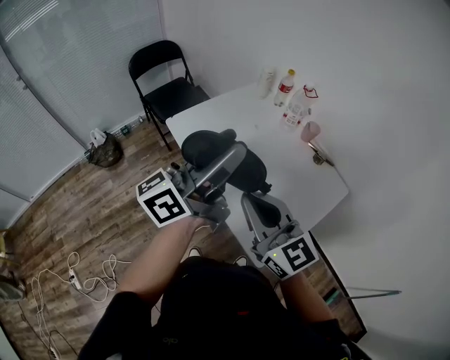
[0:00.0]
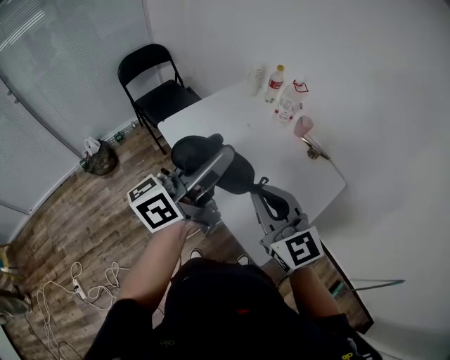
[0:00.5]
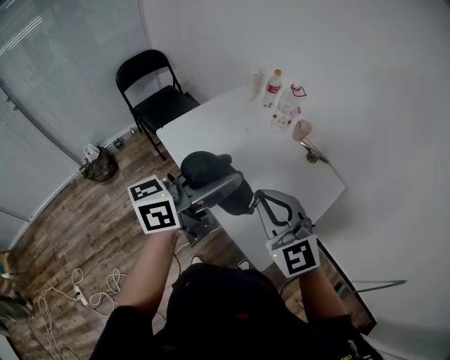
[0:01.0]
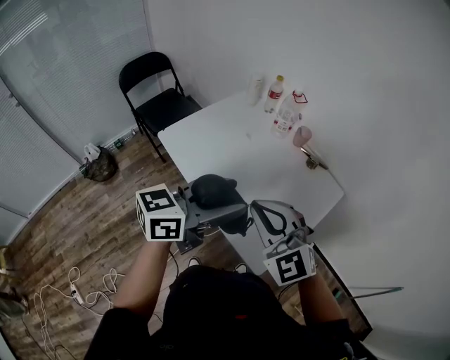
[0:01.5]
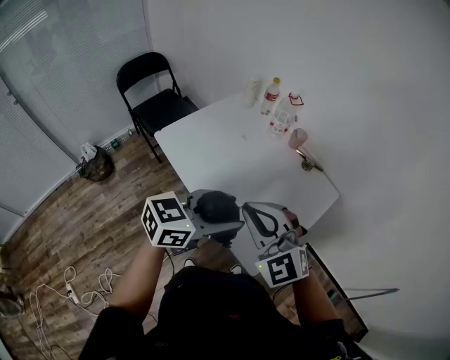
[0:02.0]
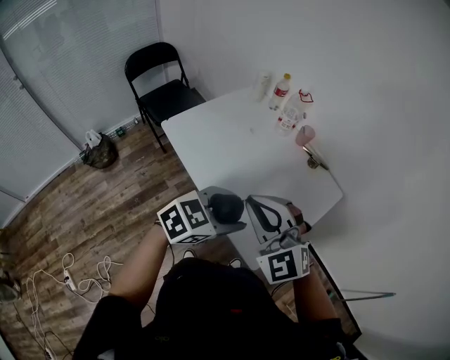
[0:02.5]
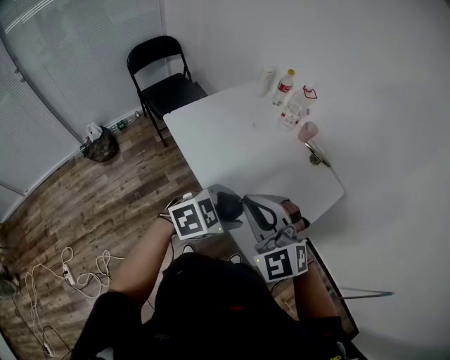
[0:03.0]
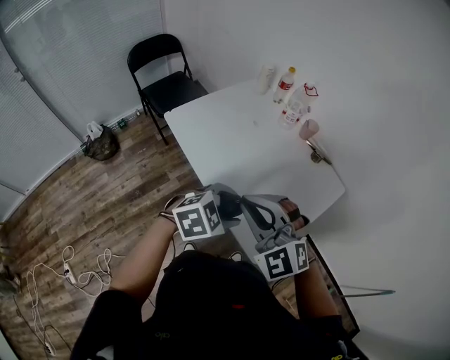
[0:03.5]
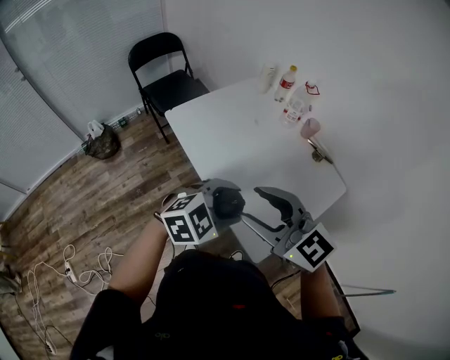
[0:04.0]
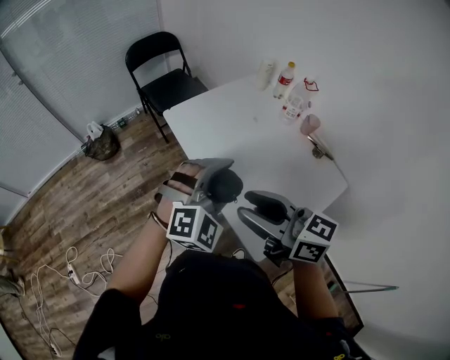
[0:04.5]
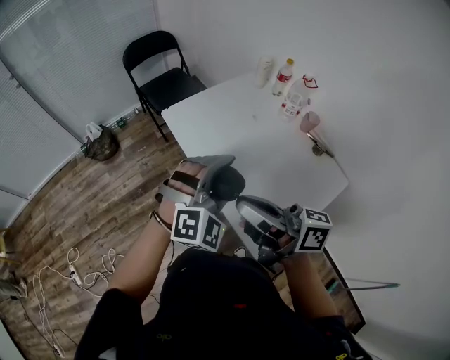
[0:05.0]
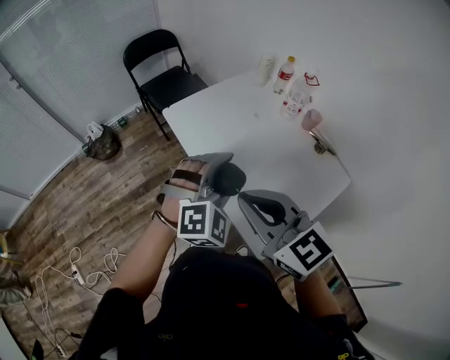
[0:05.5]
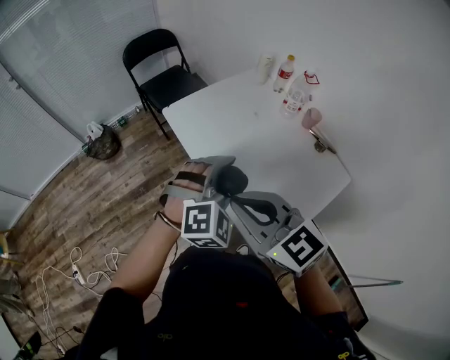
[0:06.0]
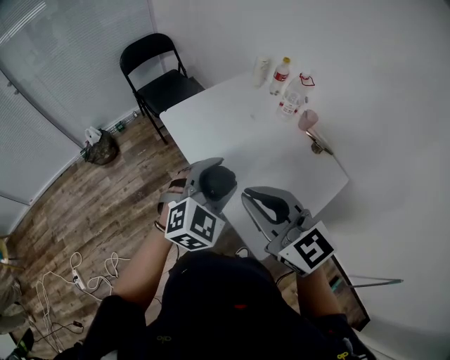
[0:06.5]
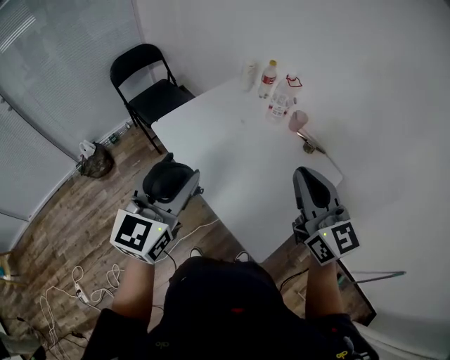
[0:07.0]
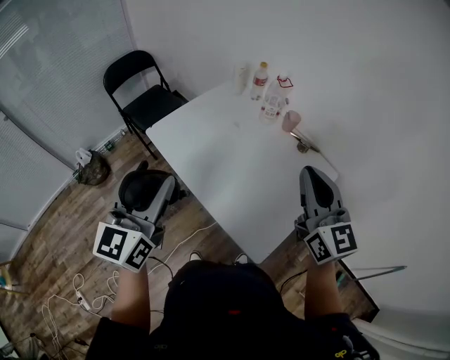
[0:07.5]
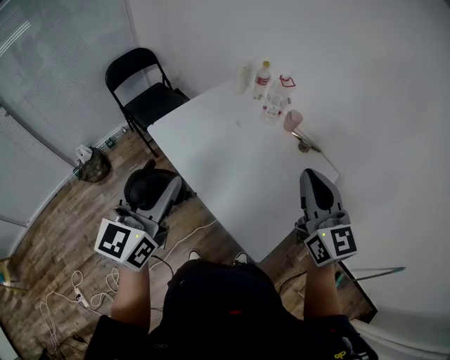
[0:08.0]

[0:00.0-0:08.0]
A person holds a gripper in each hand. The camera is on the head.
0:00.0 to 0:02.0: The left gripper shifts some 15 cm downward, to the right and backward, and tilts its fingers roughly 40 degrees downward, while the right gripper rotates roughly 40 degrees.
0:02.0 to 0:04.0: The right gripper changes its angle by approximately 40 degrees, and opens its fingers. The left gripper travels downward by roughly 10 cm, and rotates roughly 40 degrees.
0:04.0 to 0:06.0: The right gripper closes up, while the left gripper travels forward by some 5 cm, and swivels approximately 40 degrees.
0:06.0 to 0:08.0: The right gripper heads to the right, covering about 20 cm, and rotates about 40 degrees. Meanwhile the left gripper travels upward and to the left by approximately 20 cm, and rotates around the line of its fingers by roughly 60 degrees, counterclockwise from behind.

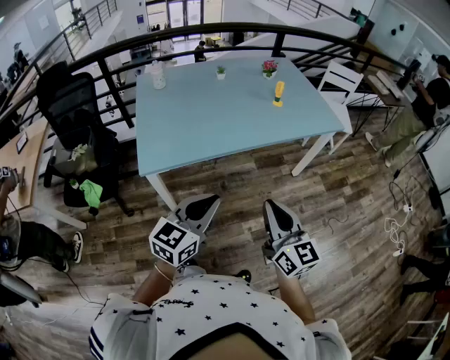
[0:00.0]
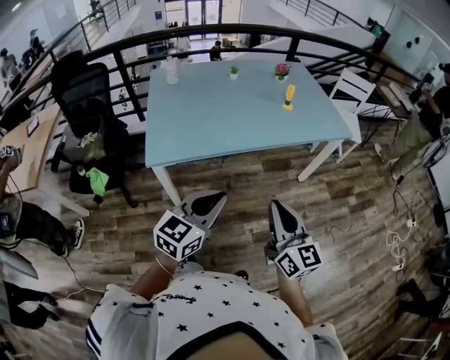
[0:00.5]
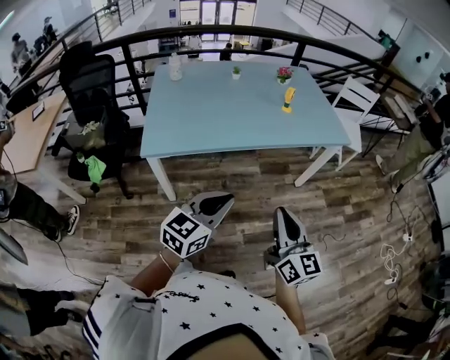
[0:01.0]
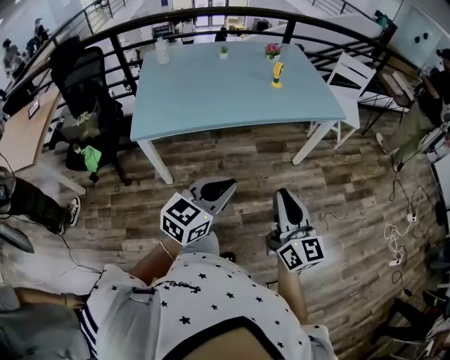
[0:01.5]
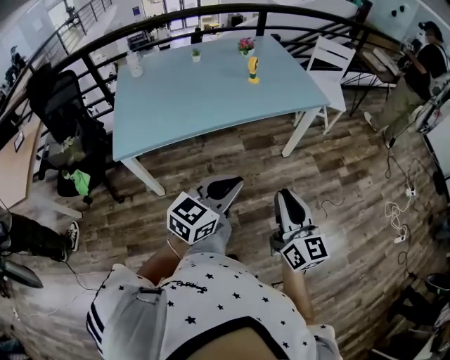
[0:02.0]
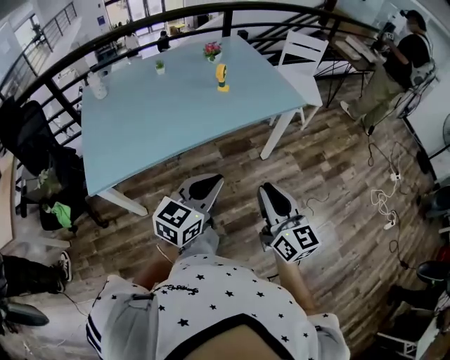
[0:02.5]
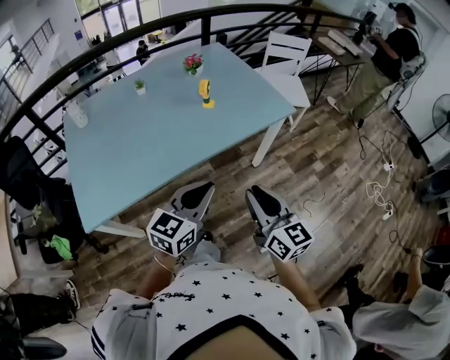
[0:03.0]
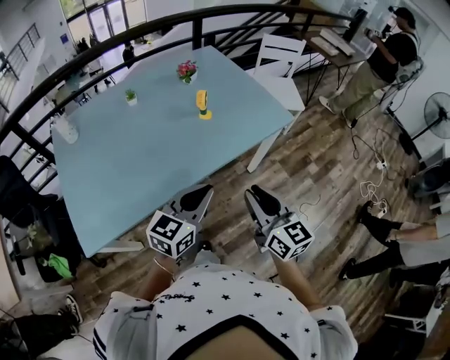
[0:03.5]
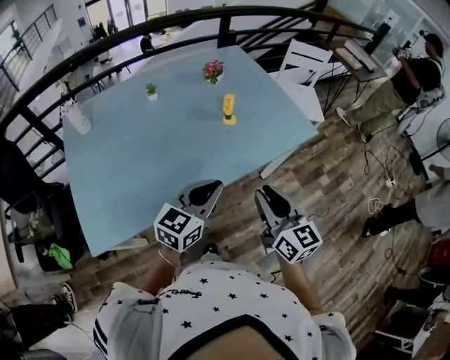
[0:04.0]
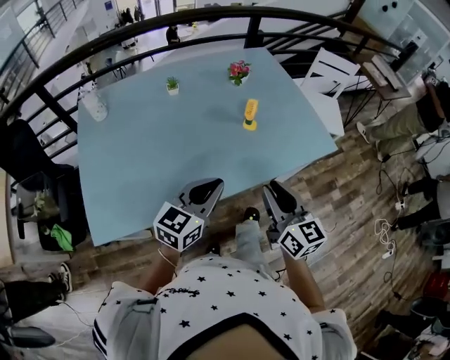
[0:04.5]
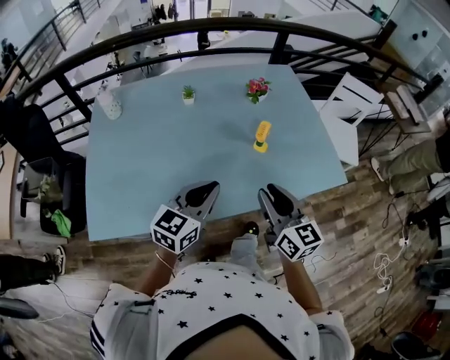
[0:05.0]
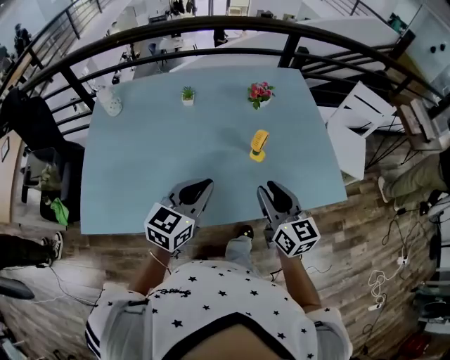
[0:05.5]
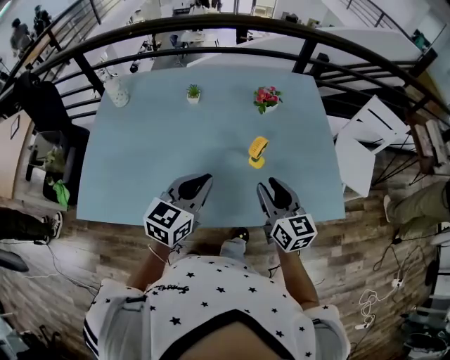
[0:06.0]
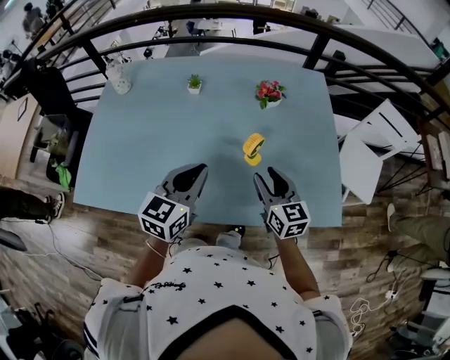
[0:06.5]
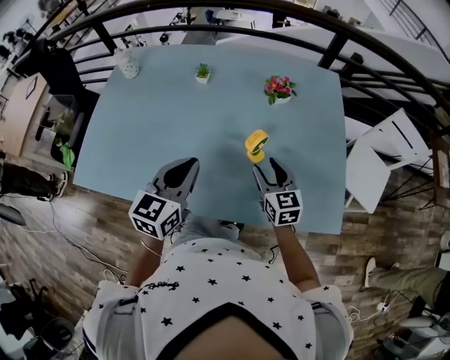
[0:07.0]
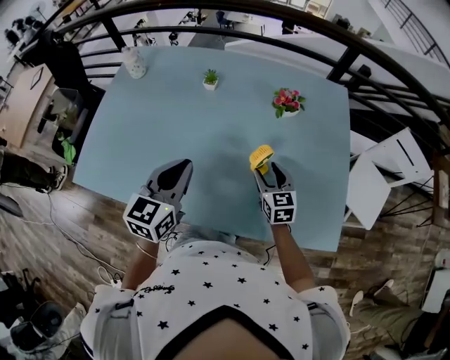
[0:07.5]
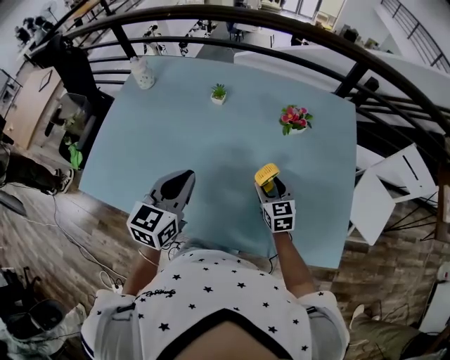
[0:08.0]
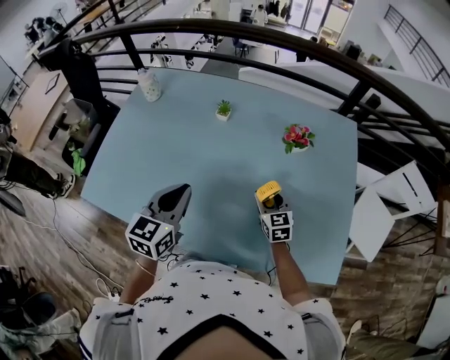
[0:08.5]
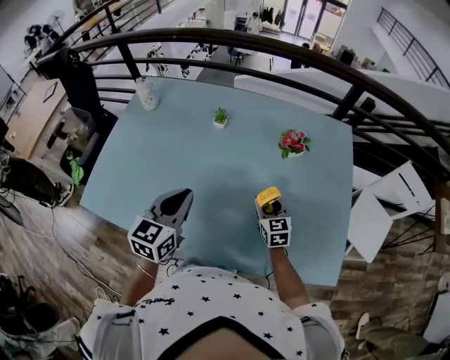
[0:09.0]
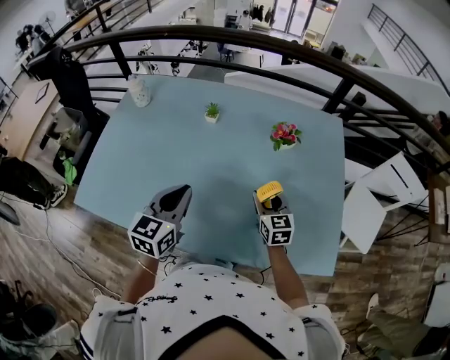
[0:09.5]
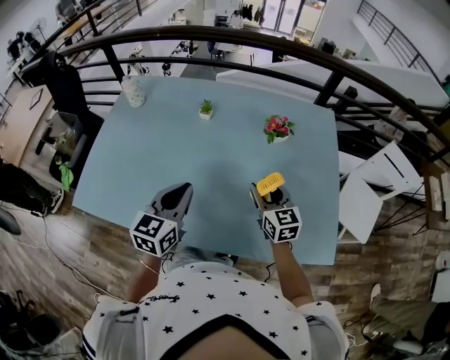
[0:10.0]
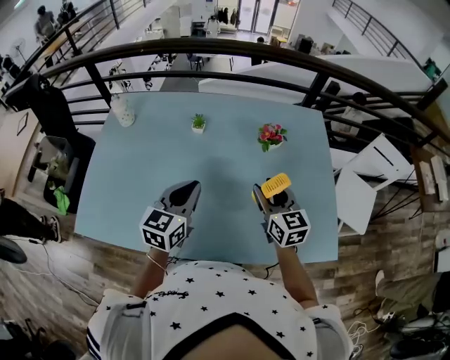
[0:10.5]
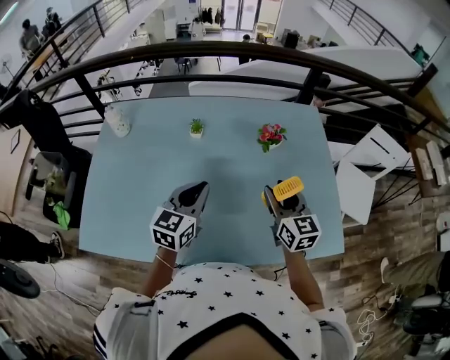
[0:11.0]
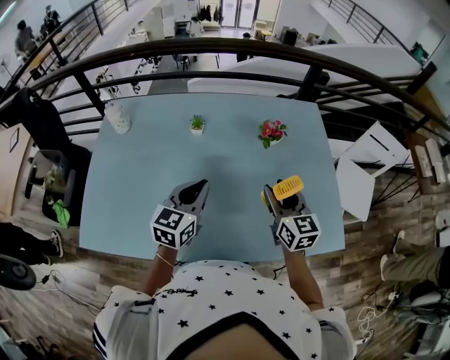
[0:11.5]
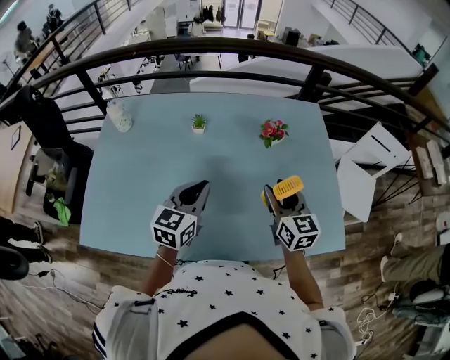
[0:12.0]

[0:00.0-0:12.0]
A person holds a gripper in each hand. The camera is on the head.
0:00.0 to 0:02.0: Both grippers travel together to the right, some 20 cm.
0:02.0 to 0:04.0: Both grippers travel together forward, roughly 30 cm.
0:04.0 to 0:06.0: The left gripper moves approximately 15 cm, and changes its angle by approximately 30 degrees. Meanwhile the right gripper shifts by about 25 cm, and turns by roughly 30 degrees.
0:06.0 to 0:08.0: The left gripper heads forward, covering about 5 cm, and turns by about 20 degrees. The right gripper is displaced downward and forward by some 20 cm, swivels about 20 degrees, and opens.
0:08.0 to 0:10.0: The right gripper is displaced upward by some 10 cm.
0:10.0 to 0:12.0: The right gripper moves upward, about 5 cm; the left gripper is displaced forward by approximately 5 cm.

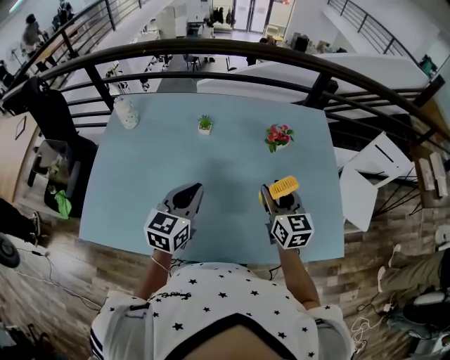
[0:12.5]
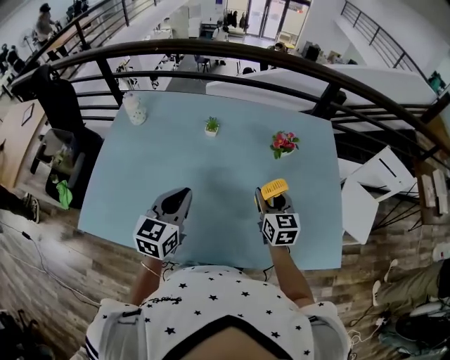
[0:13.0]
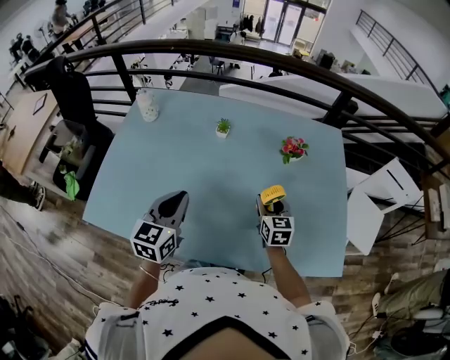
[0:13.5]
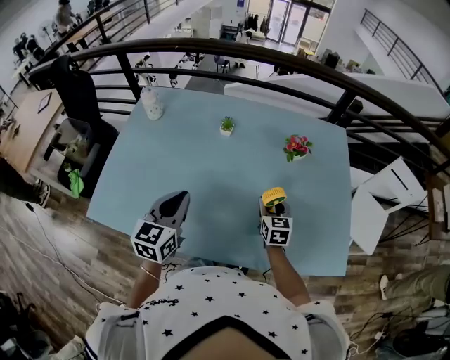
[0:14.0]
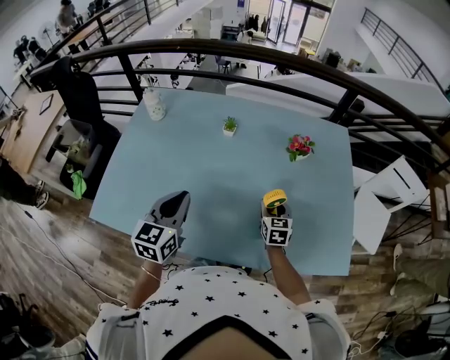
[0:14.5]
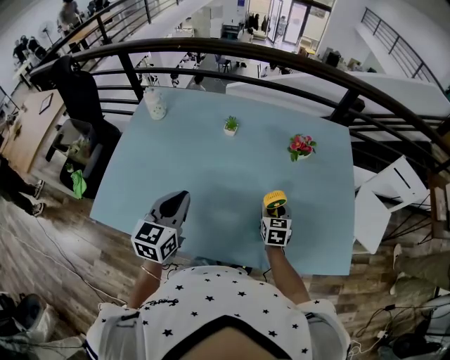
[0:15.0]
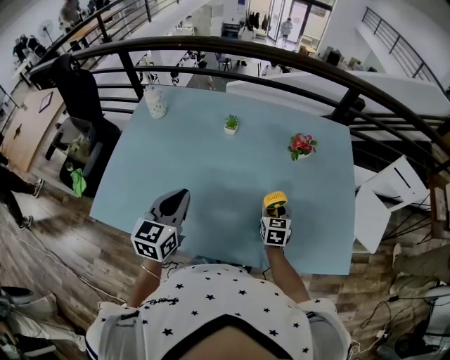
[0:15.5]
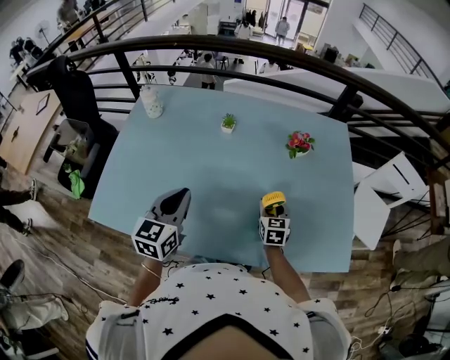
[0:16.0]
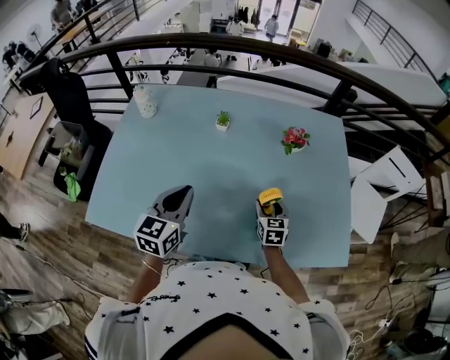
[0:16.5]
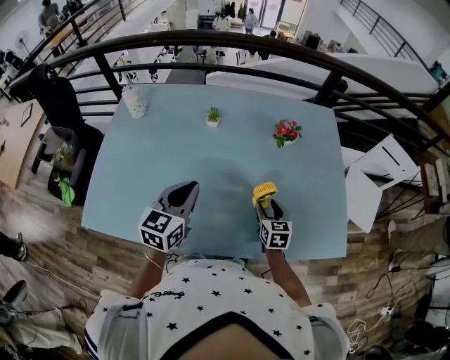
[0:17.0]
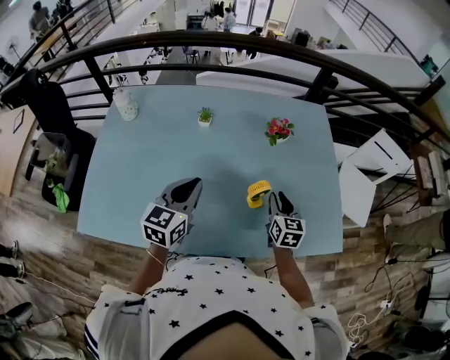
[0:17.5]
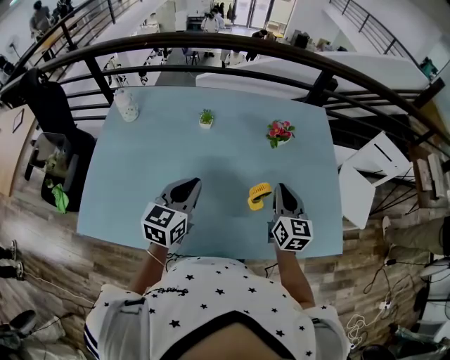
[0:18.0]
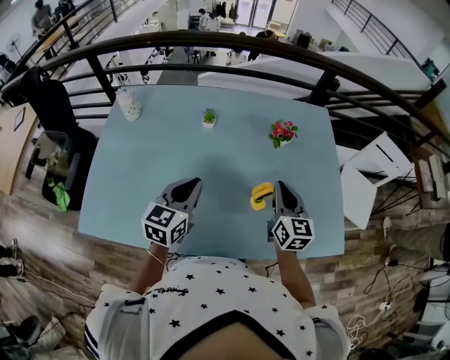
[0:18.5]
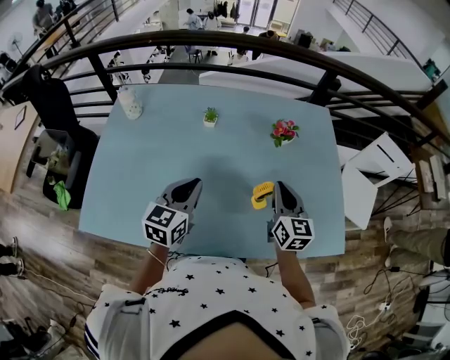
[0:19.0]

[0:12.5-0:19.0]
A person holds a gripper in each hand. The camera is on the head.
0:12.5 to 0:14.5: The left gripper is displaced to the left by roughly 5 cm. Meanwhile the right gripper heads downward, covering some 15 cm.
0:14.5 to 0:17.0: The left gripper changes place by some 5 cm. The right gripper is displaced backward by roughly 5 cm.
0:17.0 to 0:19.0: The right gripper is displaced upward by some 15 cm, rotates some 20 degrees, and closes.
